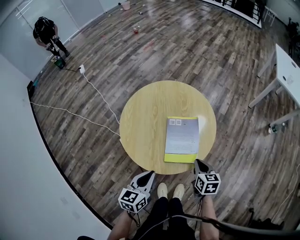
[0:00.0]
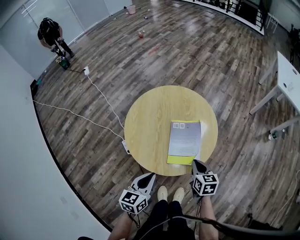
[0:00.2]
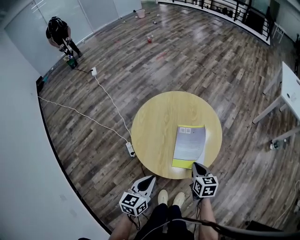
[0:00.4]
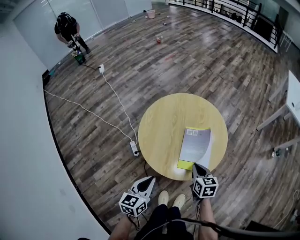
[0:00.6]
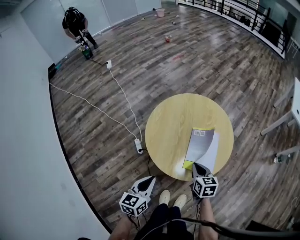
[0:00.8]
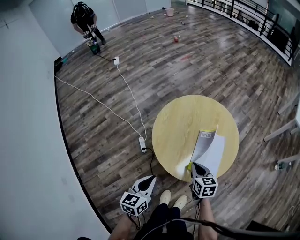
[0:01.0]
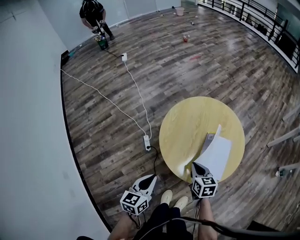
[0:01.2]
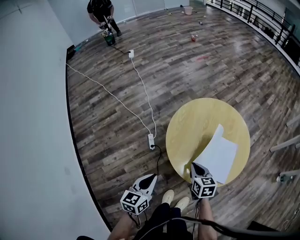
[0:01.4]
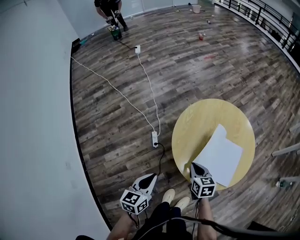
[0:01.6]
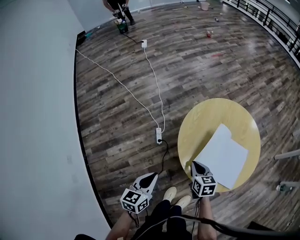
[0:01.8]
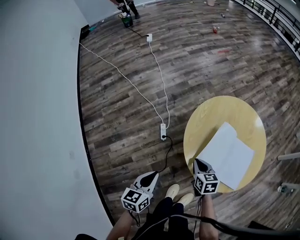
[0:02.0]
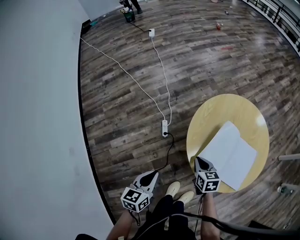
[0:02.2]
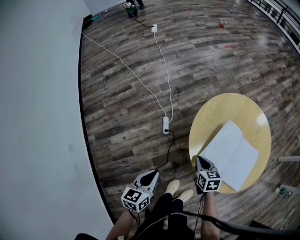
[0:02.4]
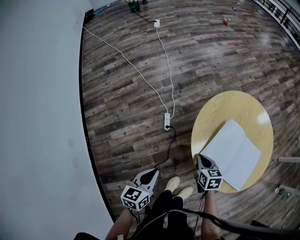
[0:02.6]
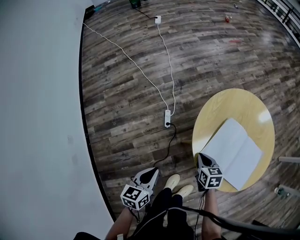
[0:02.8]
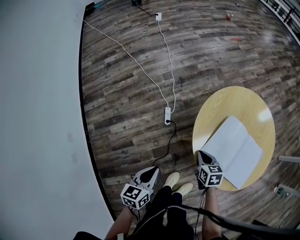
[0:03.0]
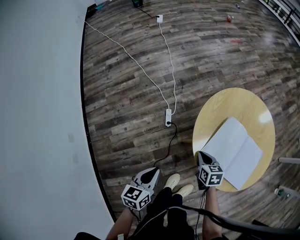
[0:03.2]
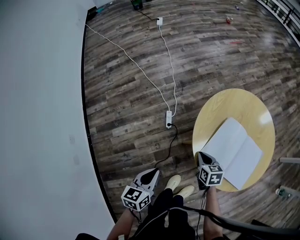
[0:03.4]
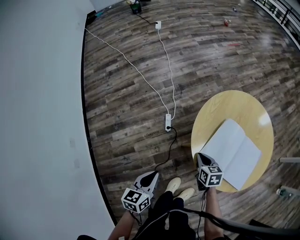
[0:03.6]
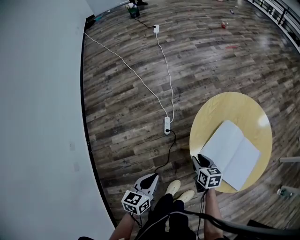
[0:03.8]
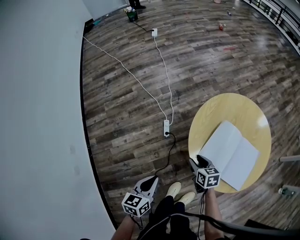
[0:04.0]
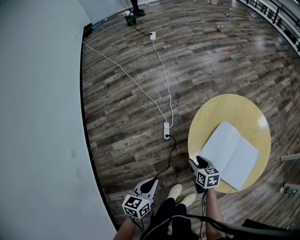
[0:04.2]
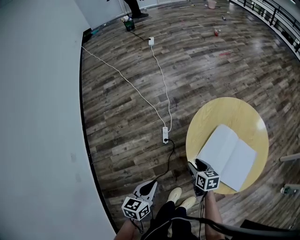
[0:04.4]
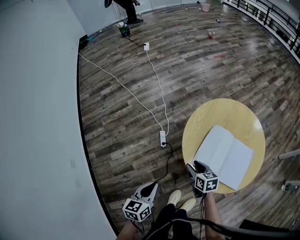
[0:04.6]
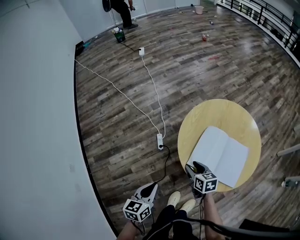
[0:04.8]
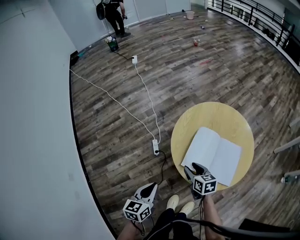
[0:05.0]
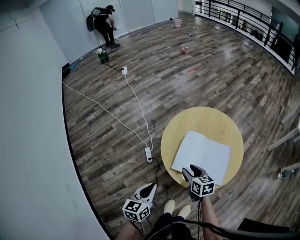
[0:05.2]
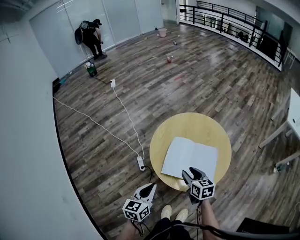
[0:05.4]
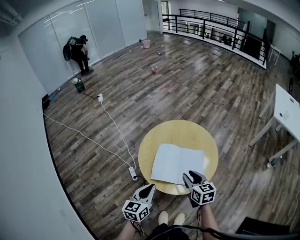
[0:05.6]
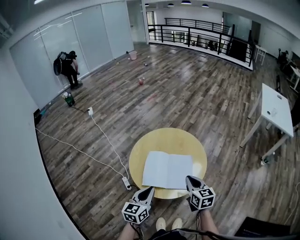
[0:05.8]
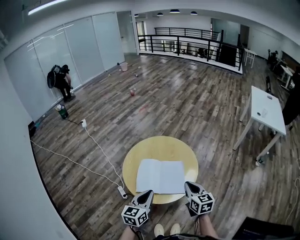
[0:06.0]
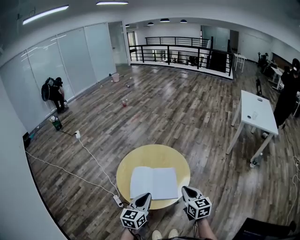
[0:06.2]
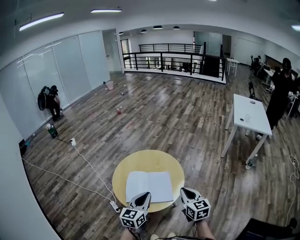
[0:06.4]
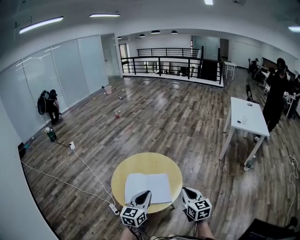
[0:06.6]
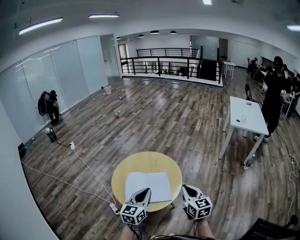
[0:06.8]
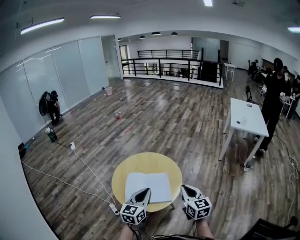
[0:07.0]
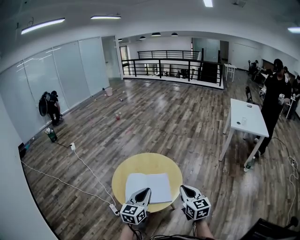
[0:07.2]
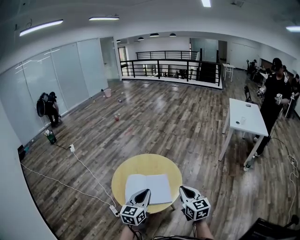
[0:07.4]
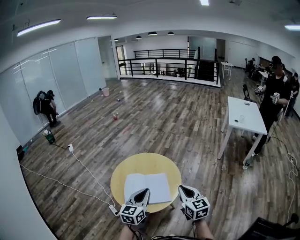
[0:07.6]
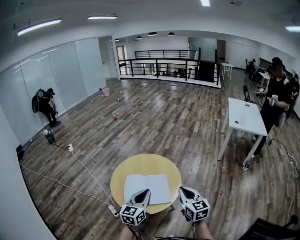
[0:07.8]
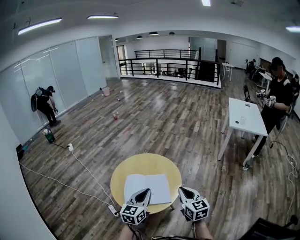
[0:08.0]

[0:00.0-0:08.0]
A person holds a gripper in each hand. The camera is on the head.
0:00.0 to 0:01.6: The left gripper shifts by roughly 20 cm, and swivels approximately 20 degrees. Meanwhile the right gripper shifts by approximately 25 cm, and changes its angle by some 30 degrees.
0:01.6 to 0:03.2: The left gripper is displaced to the left and downward by roughly 10 cm. The right gripper travels downward and to the left by roughly 10 cm.
0:03.2 to 0:04.8: The right gripper opens its fingers.
0:04.8 to 0:06.4: The right gripper changes place by about 40 cm, rotates about 50 degrees, and closes up. The left gripper shifts by approximately 35 cm, and turns by some 40 degrees.
0:06.4 to 0:08.0: The grippers stay close to where they were, moving slightly.

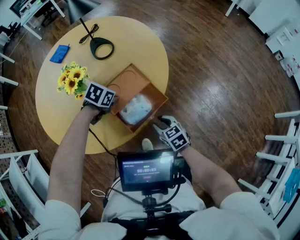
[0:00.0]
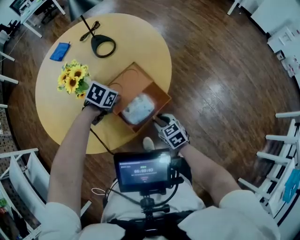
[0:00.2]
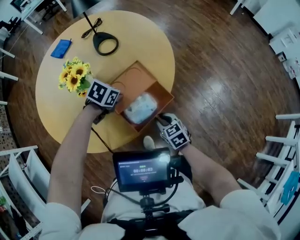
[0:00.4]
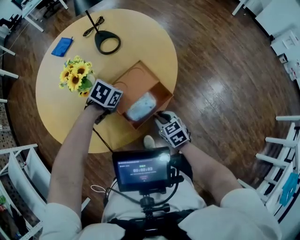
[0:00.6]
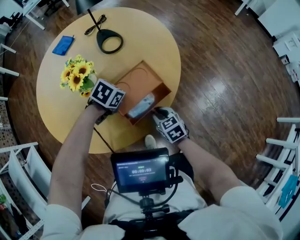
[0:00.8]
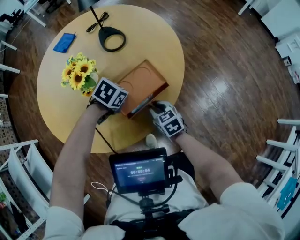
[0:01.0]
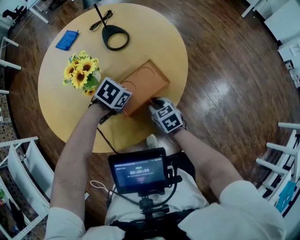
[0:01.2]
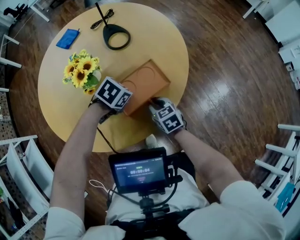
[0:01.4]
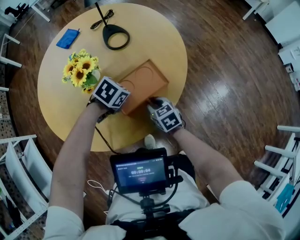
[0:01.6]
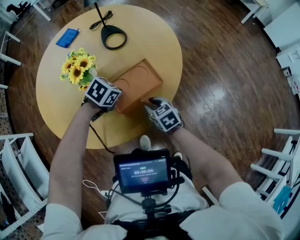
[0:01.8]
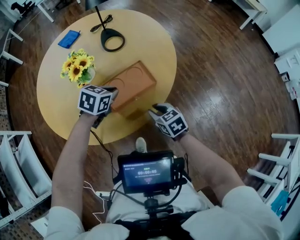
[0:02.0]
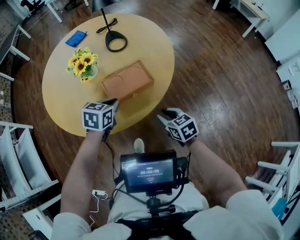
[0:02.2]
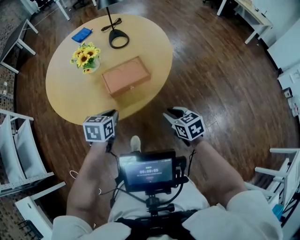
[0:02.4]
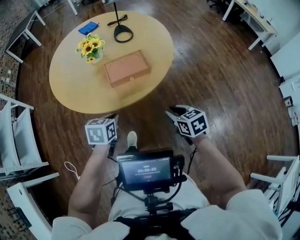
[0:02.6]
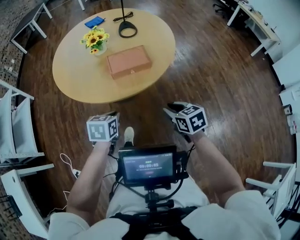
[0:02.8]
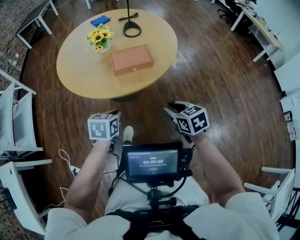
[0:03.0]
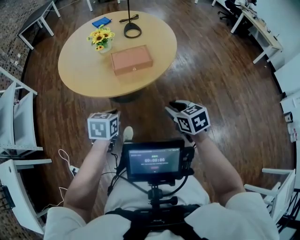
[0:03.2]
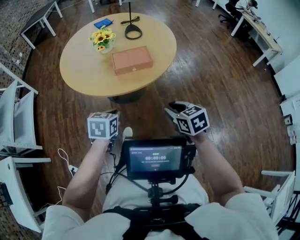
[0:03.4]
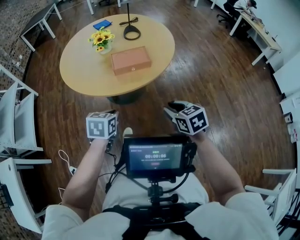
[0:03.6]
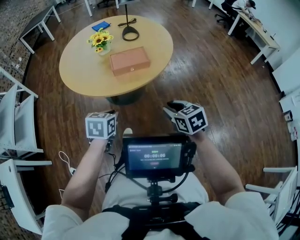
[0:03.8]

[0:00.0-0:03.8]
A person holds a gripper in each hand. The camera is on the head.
0:00.0 to 0:01.2: The right gripper moves forward and to the left, approximately 15 cm. Meanwhile the left gripper closes.
0:01.2 to 0:02.6: The left gripper shifts by approximately 25 cm, and changes its angle by approximately 60 degrees, while the right gripper changes place by roughly 25 cm.
0:02.6 to 0:03.8: The left gripper travels backward by roughly 10 cm; the right gripper is displaced backward and upward by about 10 cm.

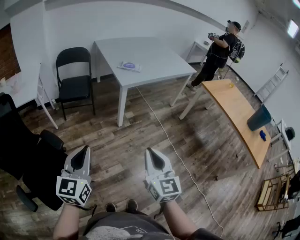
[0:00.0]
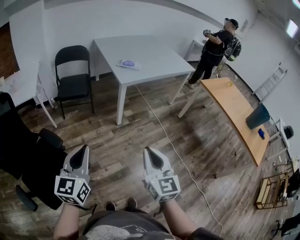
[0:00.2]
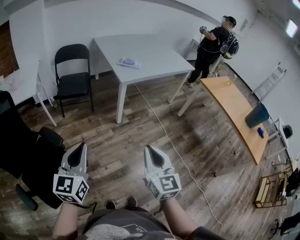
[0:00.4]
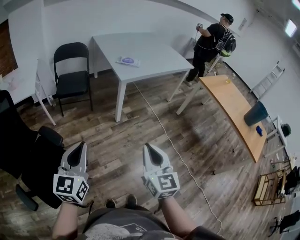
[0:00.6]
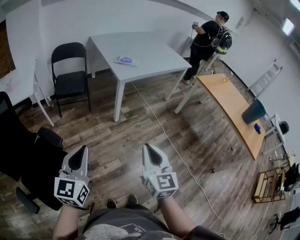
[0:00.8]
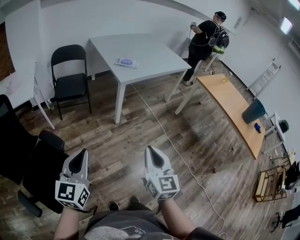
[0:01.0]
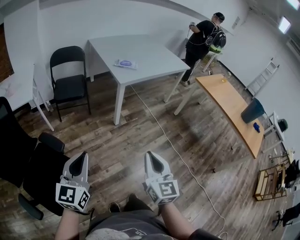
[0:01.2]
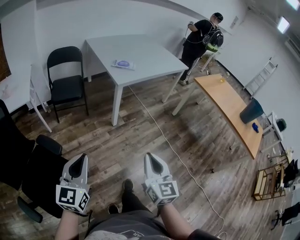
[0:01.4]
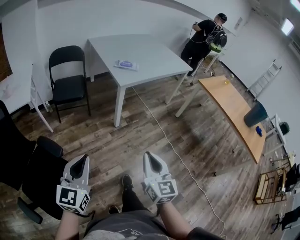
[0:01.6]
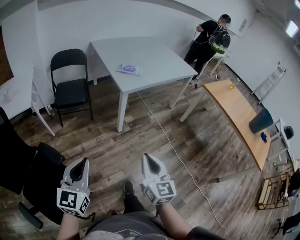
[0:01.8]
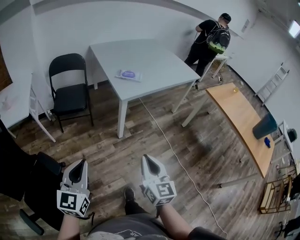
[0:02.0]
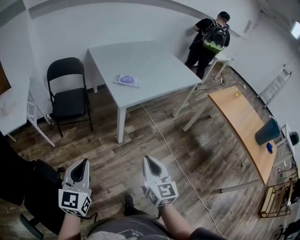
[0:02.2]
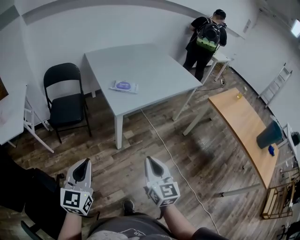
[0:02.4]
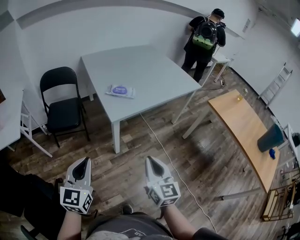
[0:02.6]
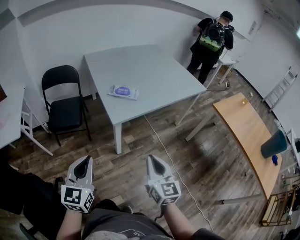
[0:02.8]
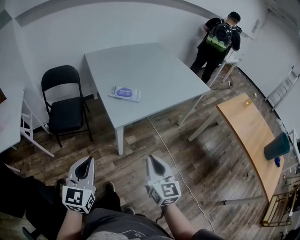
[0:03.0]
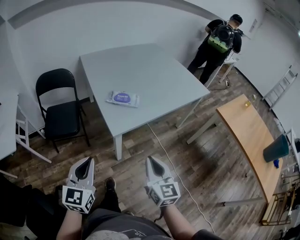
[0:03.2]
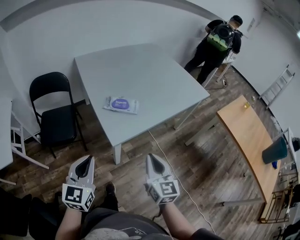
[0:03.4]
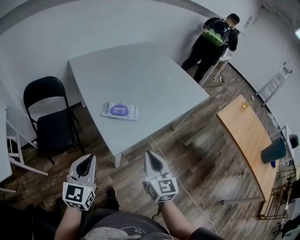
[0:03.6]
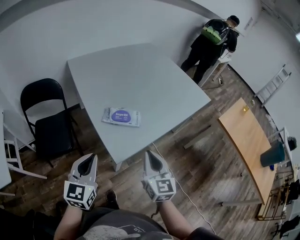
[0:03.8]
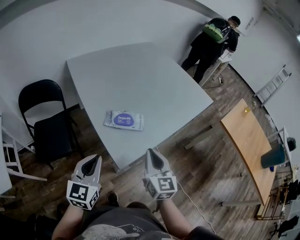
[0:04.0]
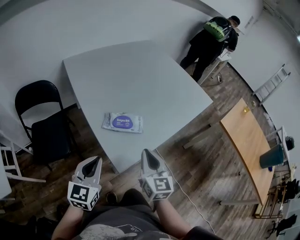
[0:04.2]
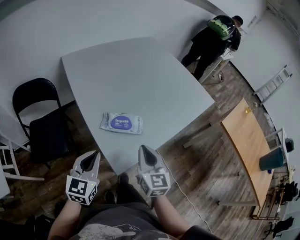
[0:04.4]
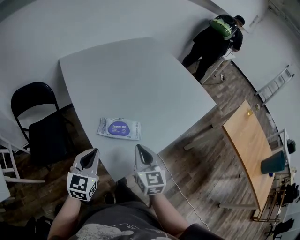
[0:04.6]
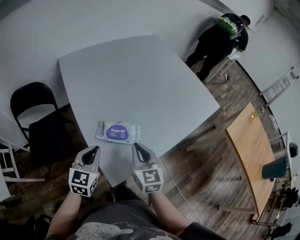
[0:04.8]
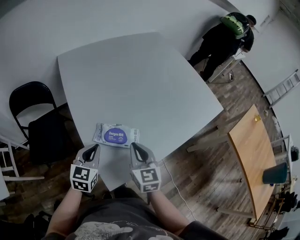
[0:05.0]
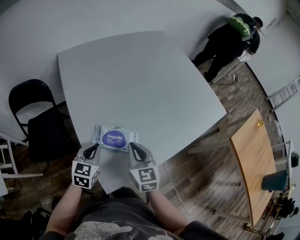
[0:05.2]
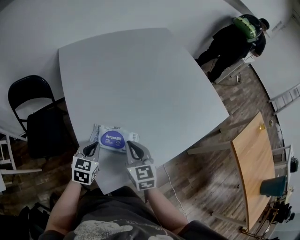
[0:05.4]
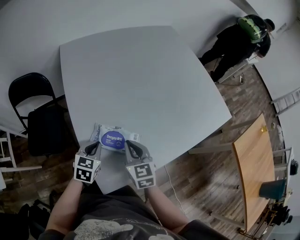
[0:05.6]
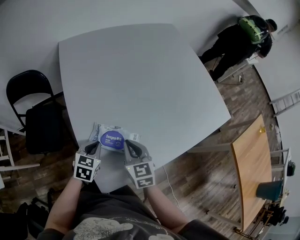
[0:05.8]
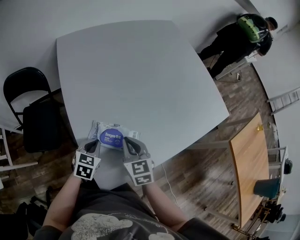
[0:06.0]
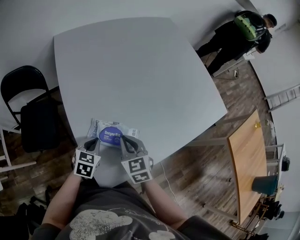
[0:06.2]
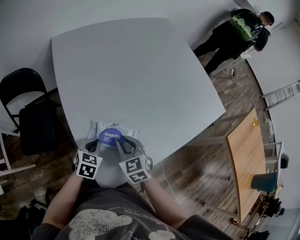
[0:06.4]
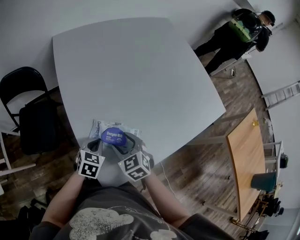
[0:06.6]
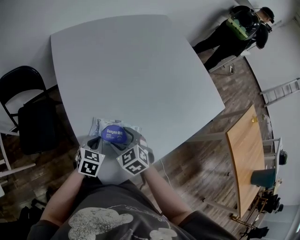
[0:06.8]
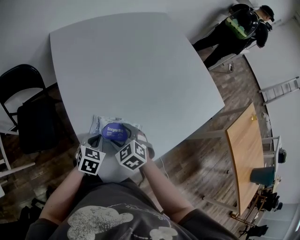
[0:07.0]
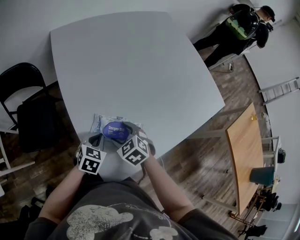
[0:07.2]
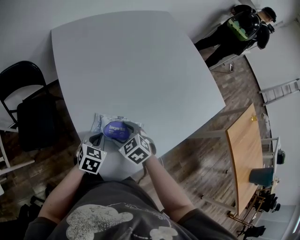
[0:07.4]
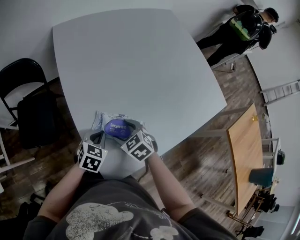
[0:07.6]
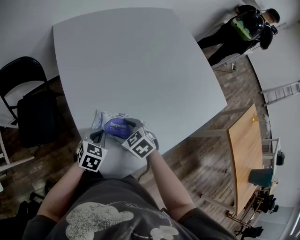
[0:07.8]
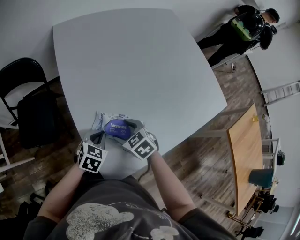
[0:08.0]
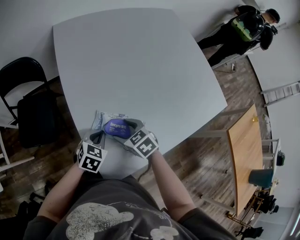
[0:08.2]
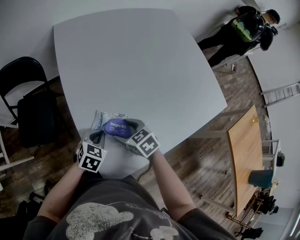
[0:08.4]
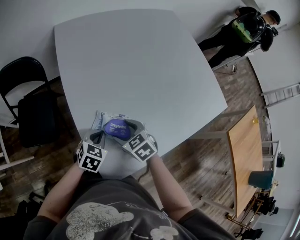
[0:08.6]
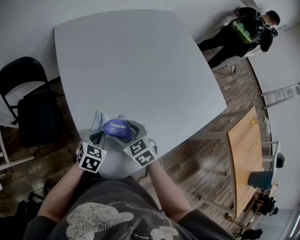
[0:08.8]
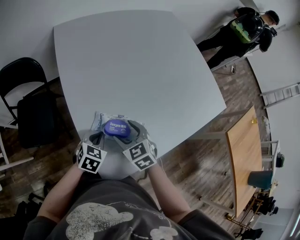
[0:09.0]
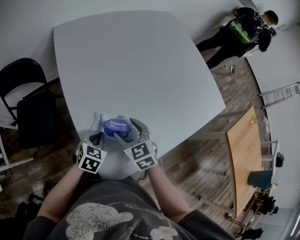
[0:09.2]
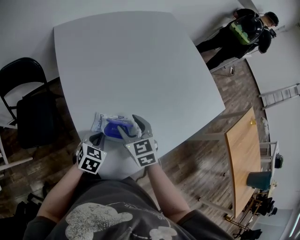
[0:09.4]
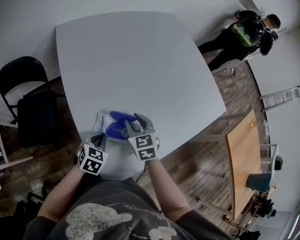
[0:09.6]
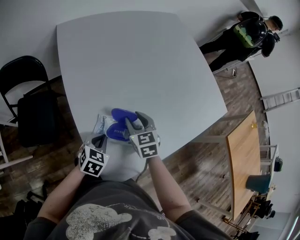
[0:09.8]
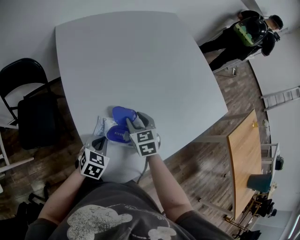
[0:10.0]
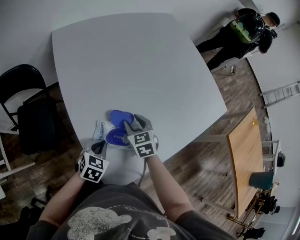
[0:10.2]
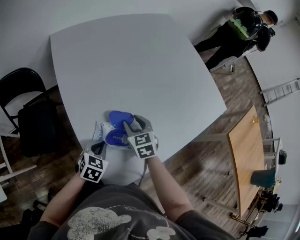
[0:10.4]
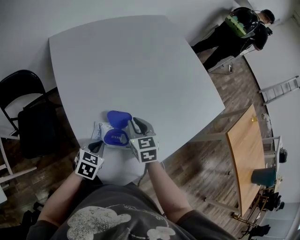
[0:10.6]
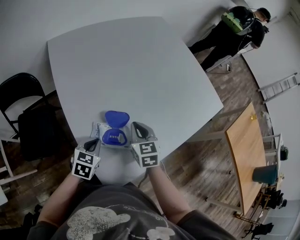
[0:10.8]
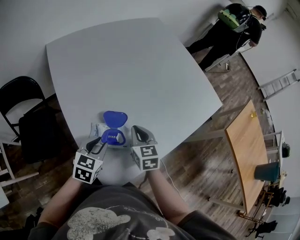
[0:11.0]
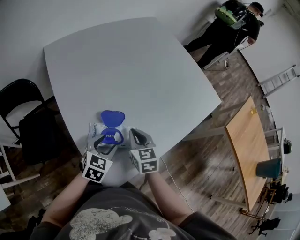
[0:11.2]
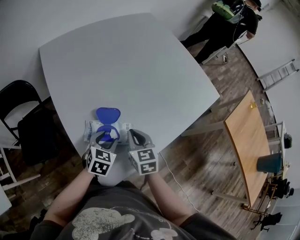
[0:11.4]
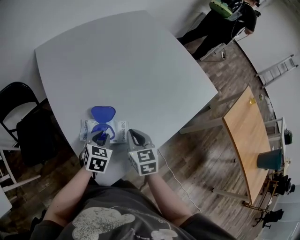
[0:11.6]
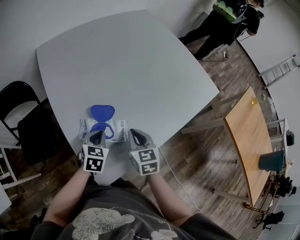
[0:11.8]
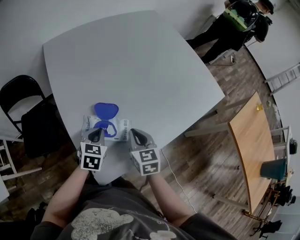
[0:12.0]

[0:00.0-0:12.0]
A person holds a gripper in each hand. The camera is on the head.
0:00.0 to 0:01.6: The right gripper ends up roughly 5 cm from where it was.
0:01.6 to 0:03.0: The two grippers go roughly 30 cm forward.
0:03.0 to 0:04.4: Both grippers move forward, approximately 30 cm.
0:04.4 to 0:06.0: The left gripper travels downward and forward by some 20 cm, and tips its fingers downward by roughly 30 degrees. The right gripper shifts roughly 15 cm forward and downward, and turns by approximately 30 degrees.
0:06.0 to 0:07.6: The right gripper shifts roughly 5 cm downward, rotates roughly 30 degrees, and opens up.
0:07.6 to 0:09.0: The grippers stay close to where they were, moving slightly.
0:09.0 to 0:10.4: The right gripper heads forward, covering approximately 10 cm, and closes up.
0:10.4 to 0:12.0: The right gripper shifts about 10 cm to the right and backward, and closes; the left gripper moves approximately 5 cm, and opens and closes again.
